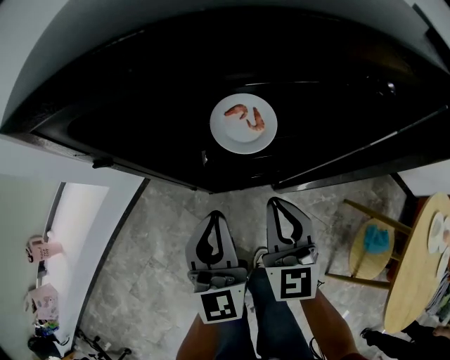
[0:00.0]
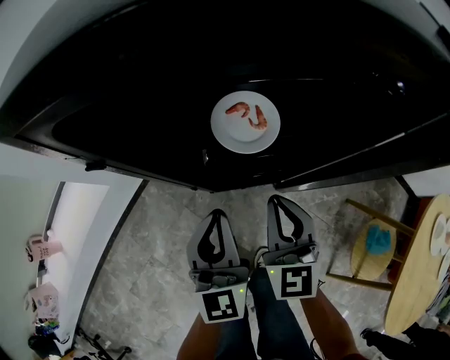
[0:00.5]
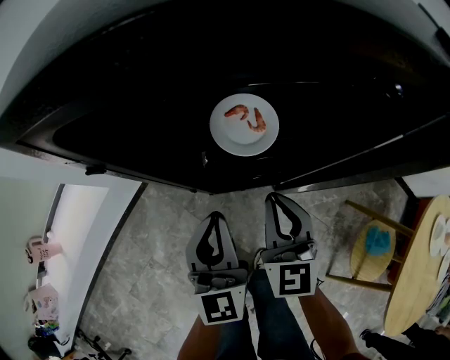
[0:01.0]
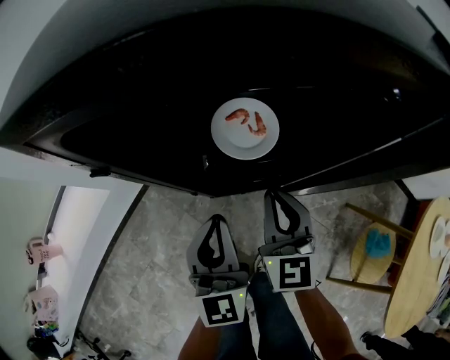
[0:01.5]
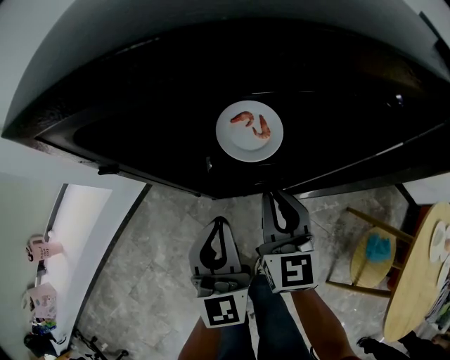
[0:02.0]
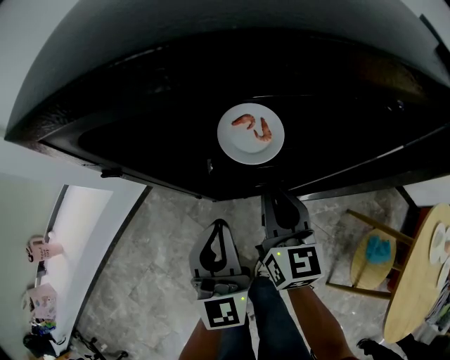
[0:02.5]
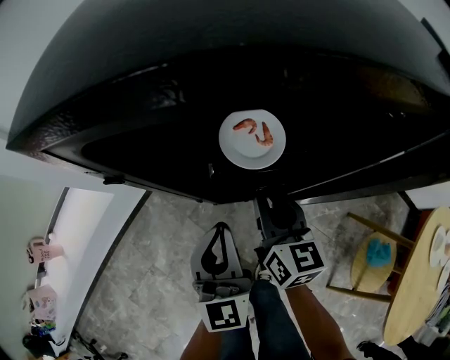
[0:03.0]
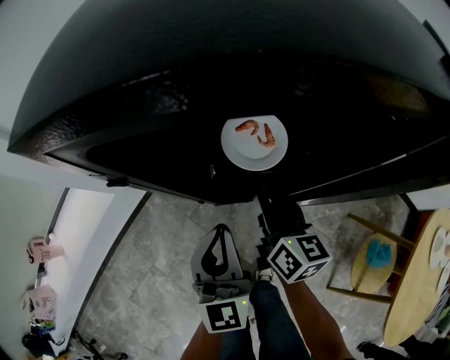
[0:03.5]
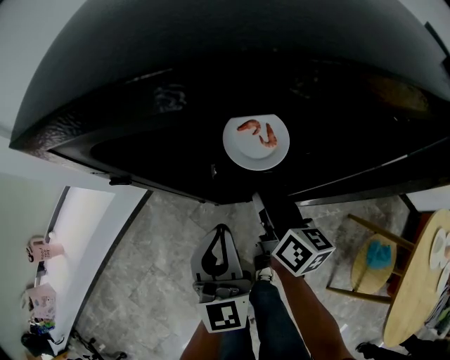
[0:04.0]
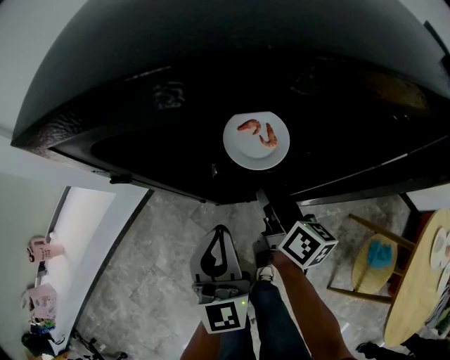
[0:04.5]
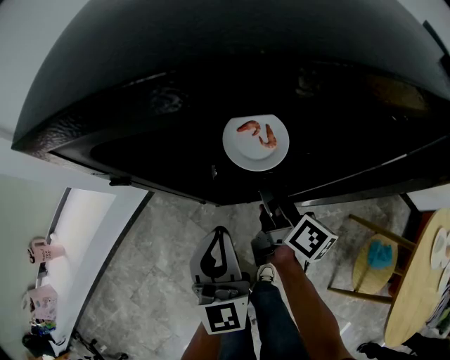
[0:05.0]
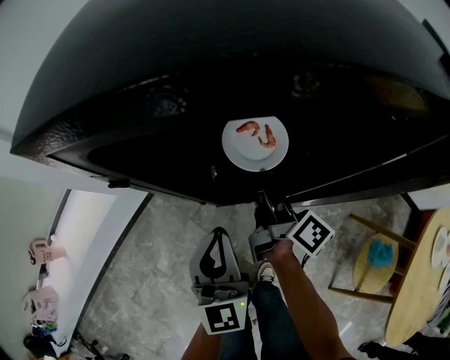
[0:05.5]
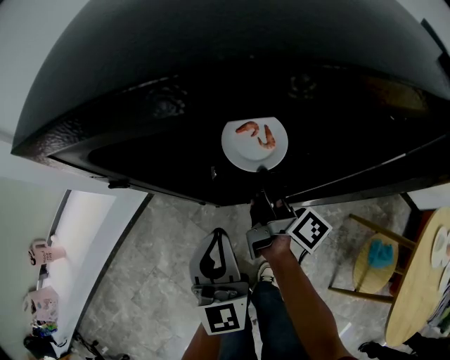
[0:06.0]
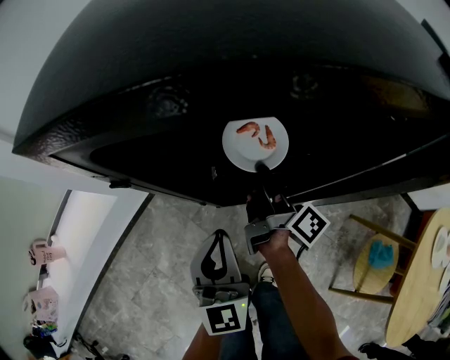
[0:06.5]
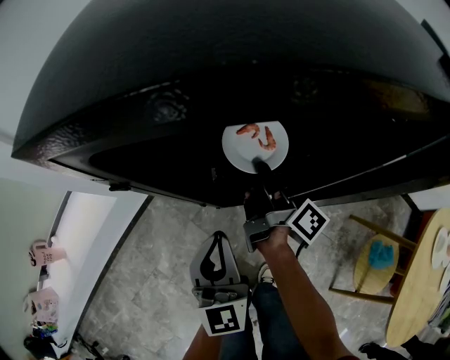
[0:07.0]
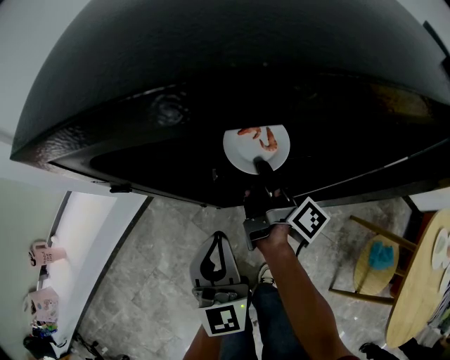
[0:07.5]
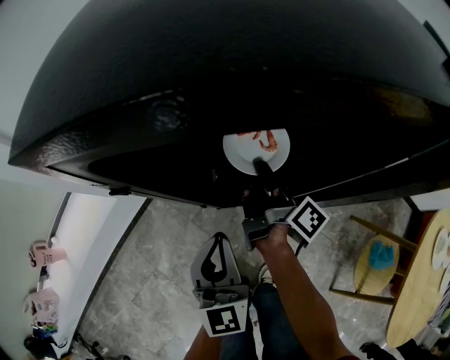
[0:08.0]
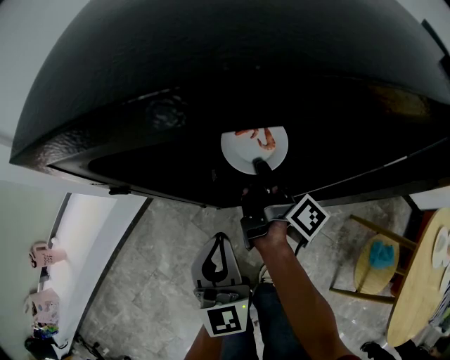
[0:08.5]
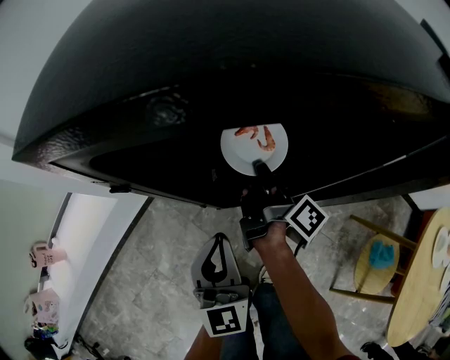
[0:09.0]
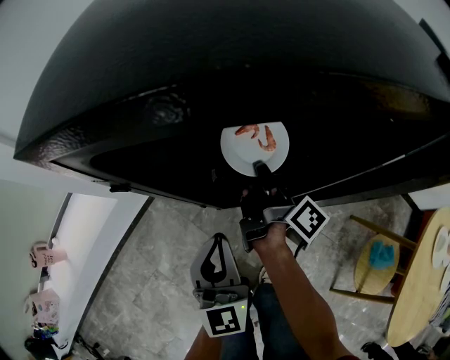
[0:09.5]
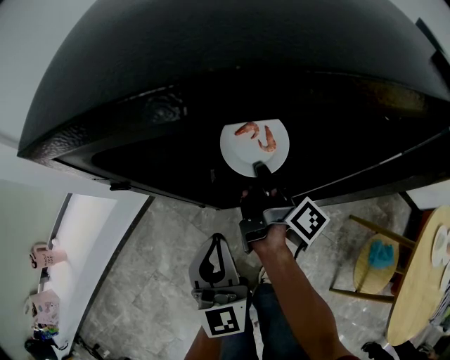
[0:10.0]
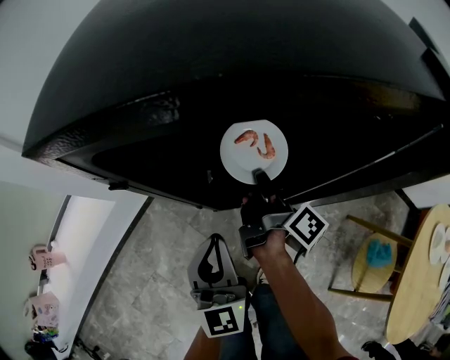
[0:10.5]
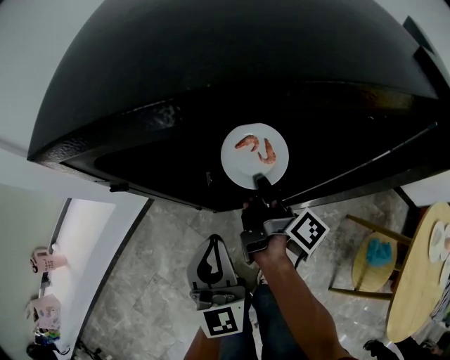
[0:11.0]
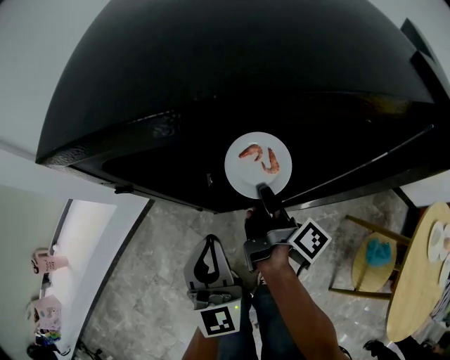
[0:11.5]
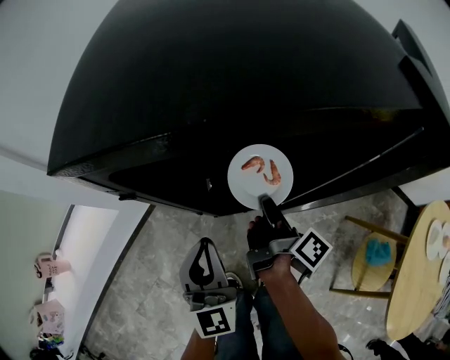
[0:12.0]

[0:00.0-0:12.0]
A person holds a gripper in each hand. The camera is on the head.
0:00.0 to 0:02.0: The grippers make only small movements.
0:02.0 to 0:04.0: The right gripper changes place by about 5 cm, rotates around the line of its fingers by some 40 degrees, clockwise from behind, and opens.
0:04.0 to 0:06.0: The right gripper turns by about 40 degrees.
0:06.0 to 0:08.0: There are only small adjustments of the grippers.
0:08.0 to 0:10.0: Neither gripper changes place.
0:10.0 to 0:12.0: The right gripper travels backward by roughly 5 cm.

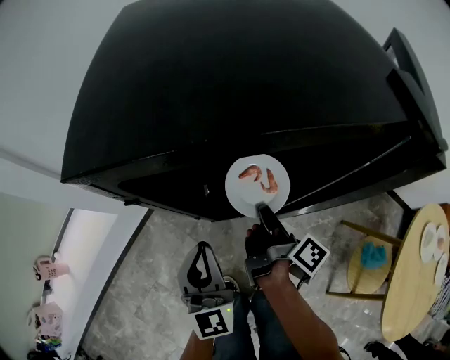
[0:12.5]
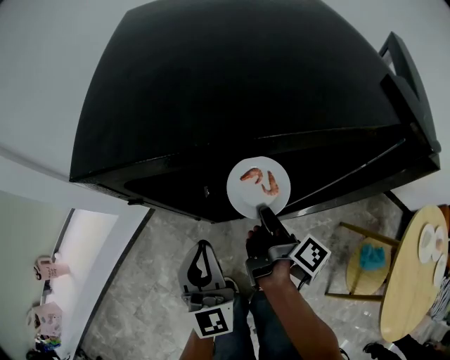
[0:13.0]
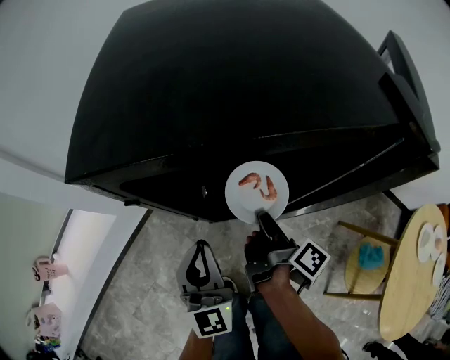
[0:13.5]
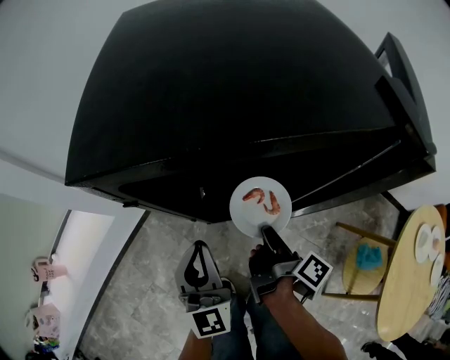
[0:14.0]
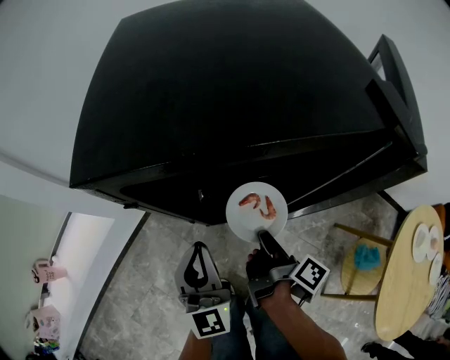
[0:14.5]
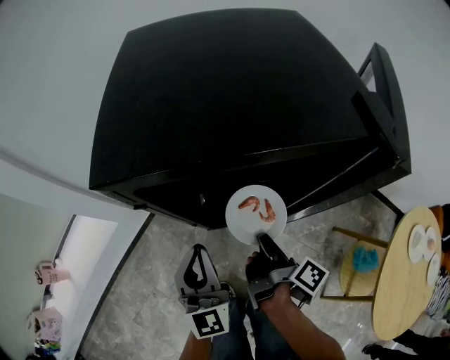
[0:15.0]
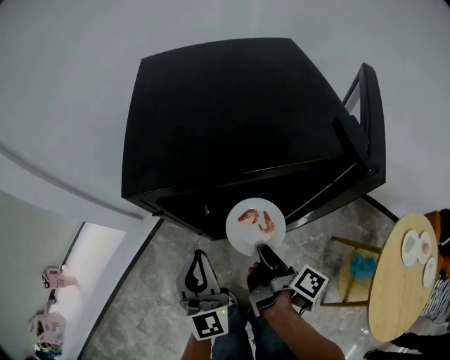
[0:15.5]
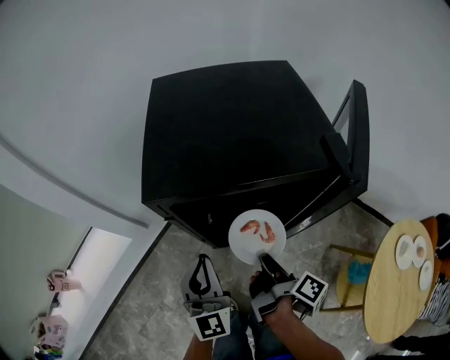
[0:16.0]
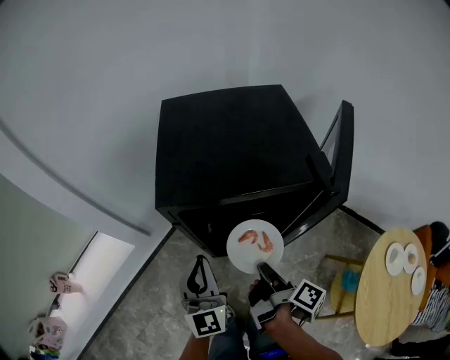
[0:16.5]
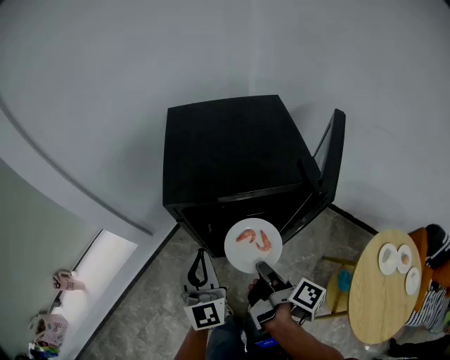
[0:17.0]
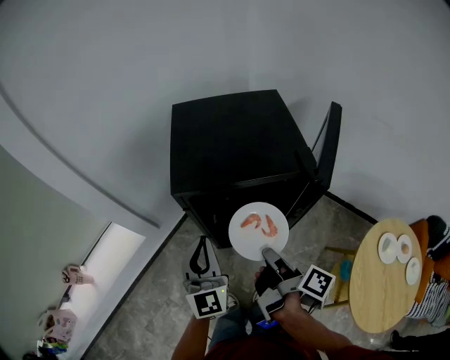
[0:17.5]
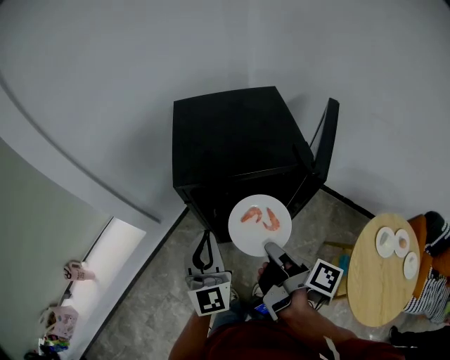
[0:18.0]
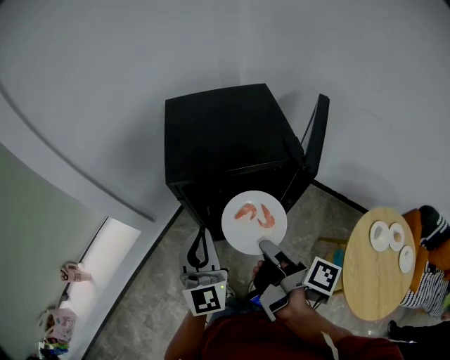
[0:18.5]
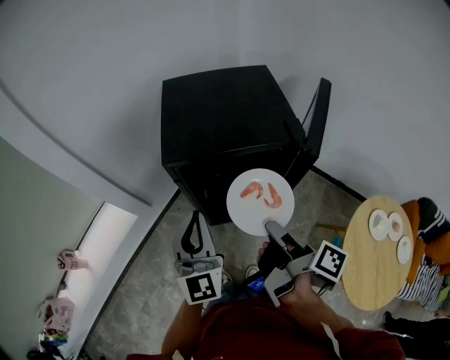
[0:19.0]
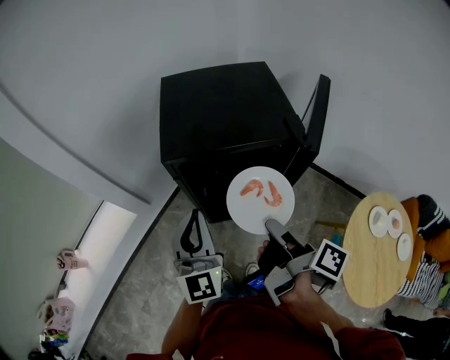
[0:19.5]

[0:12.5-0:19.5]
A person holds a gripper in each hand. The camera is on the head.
0:12.5 to 0:14.5: The right gripper moves backward, about 5 cm.
0:14.5 to 0:16.0: The two grippers go roughly 10 cm upward.
0:16.0 to 0:17.5: Both grippers move upward, some 15 cm.
0:17.5 to 0:19.5: The right gripper goes roughly 5 cm upward.

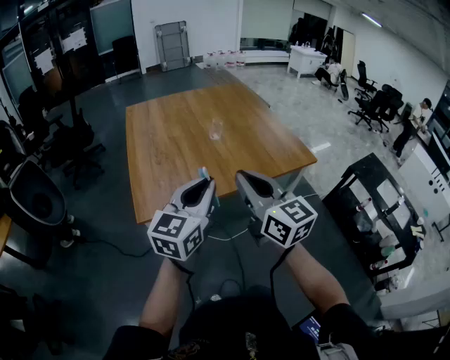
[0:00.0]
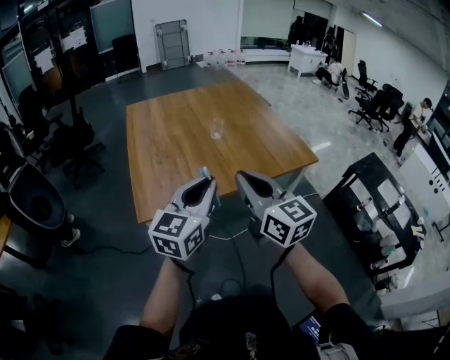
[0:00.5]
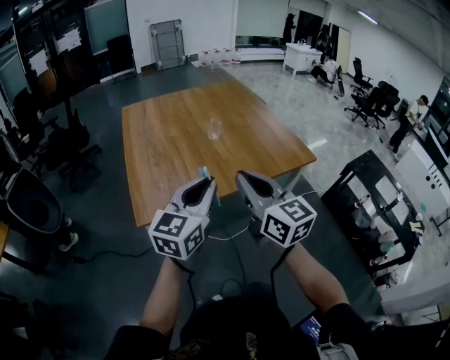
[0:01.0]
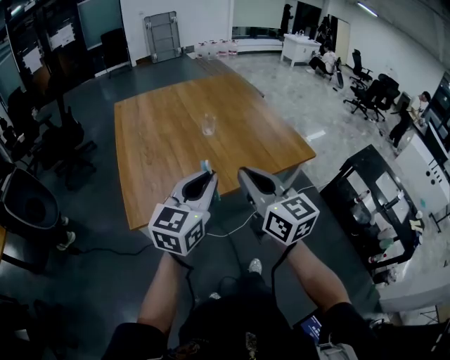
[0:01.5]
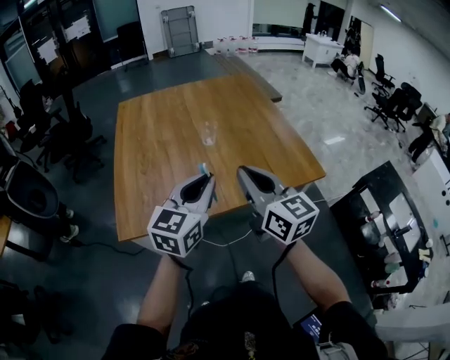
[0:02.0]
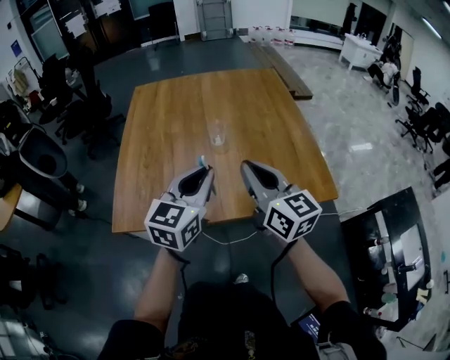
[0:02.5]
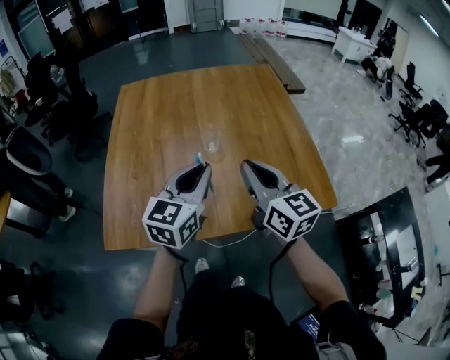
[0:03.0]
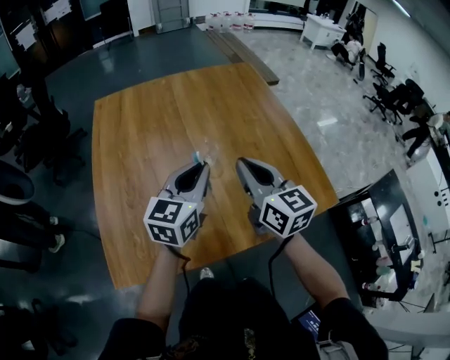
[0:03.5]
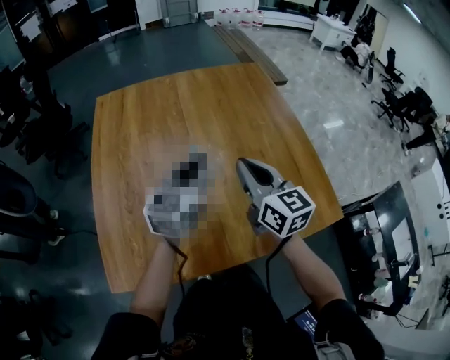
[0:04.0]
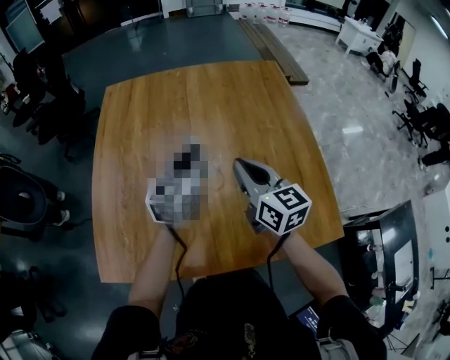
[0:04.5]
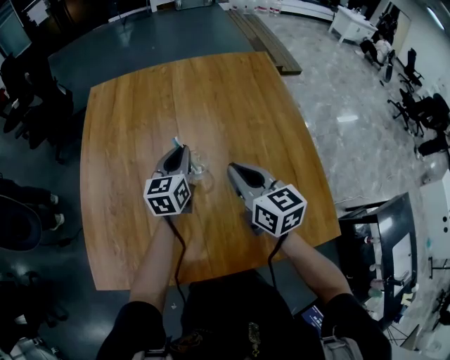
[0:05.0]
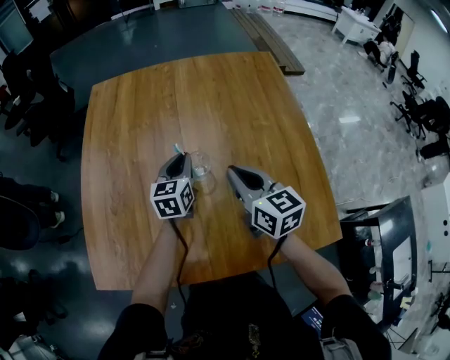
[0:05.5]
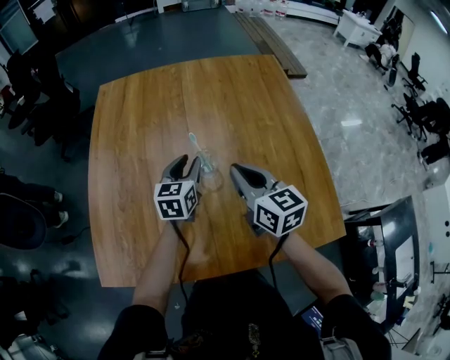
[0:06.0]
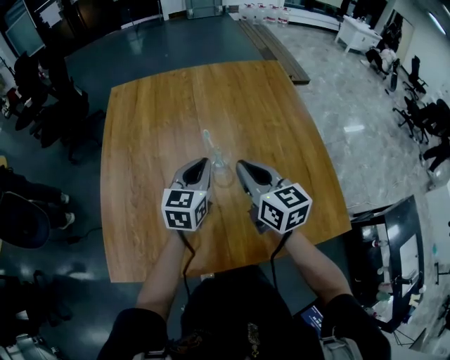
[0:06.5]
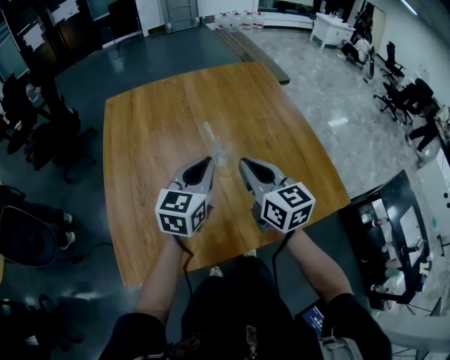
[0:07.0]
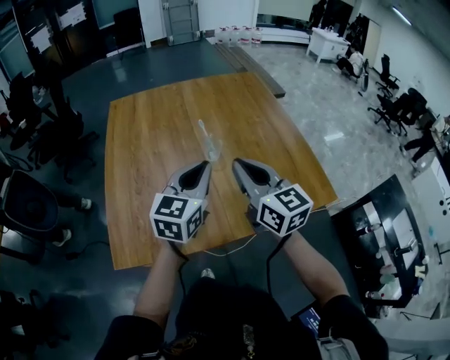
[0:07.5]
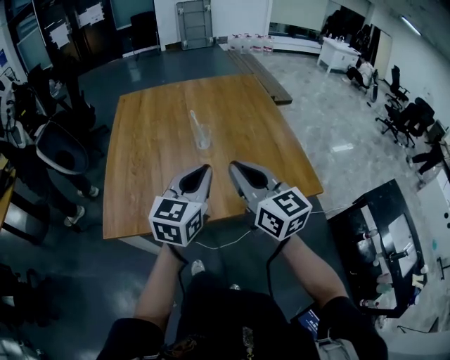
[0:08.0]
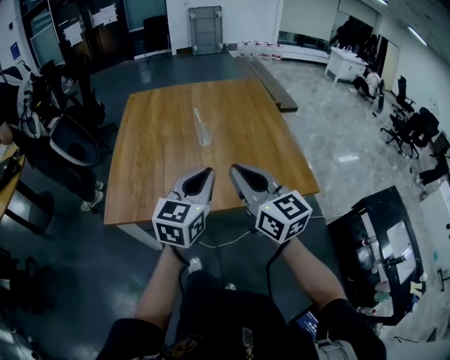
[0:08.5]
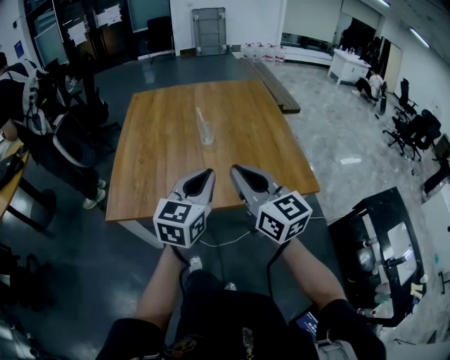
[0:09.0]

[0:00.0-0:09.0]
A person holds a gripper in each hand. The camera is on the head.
0:00.0 to 0:02.0: The two grippers go approximately 20 cm forward and to the right.
0:02.0 to 0:04.5: Both grippers move forward, about 35 cm.
0:04.5 to 0:07.0: Both grippers travel together backward and to the left, some 10 cm. The left gripper opens, then closes again.
0:07.0 to 0:09.0: The grippers both shift backward by approximately 30 cm.
